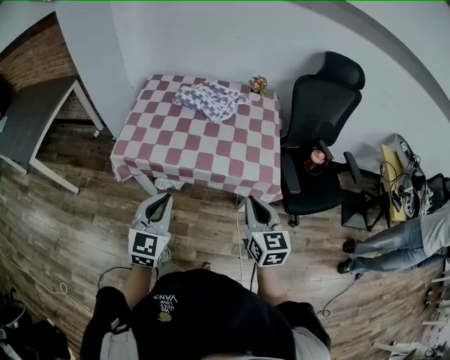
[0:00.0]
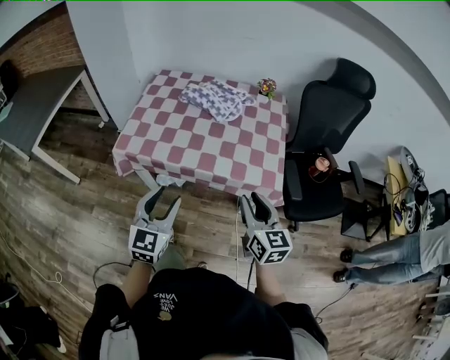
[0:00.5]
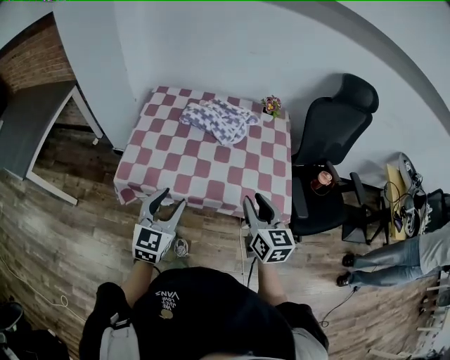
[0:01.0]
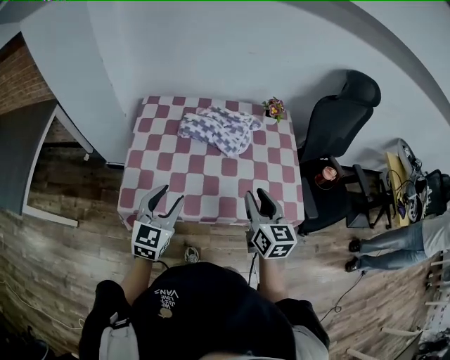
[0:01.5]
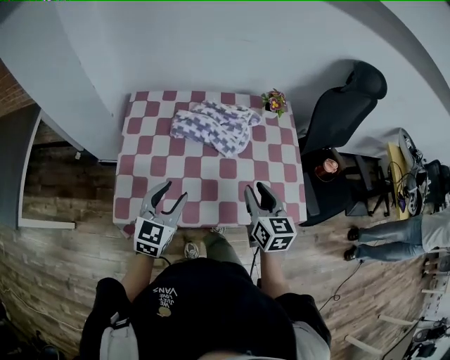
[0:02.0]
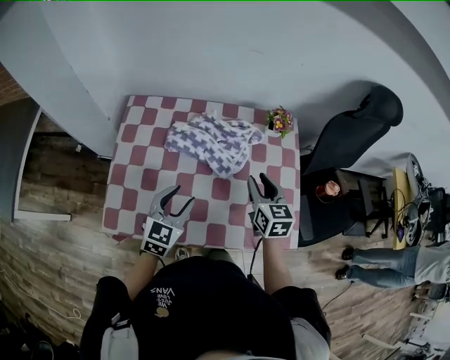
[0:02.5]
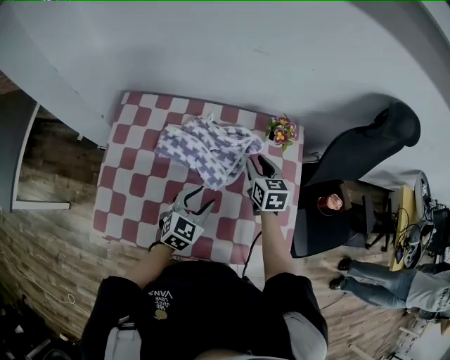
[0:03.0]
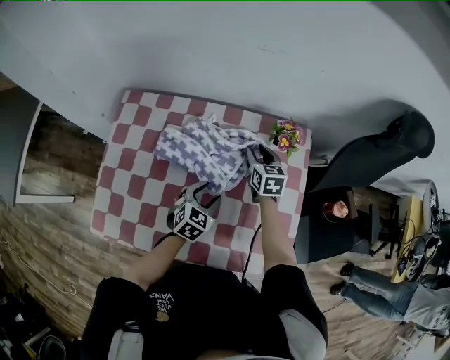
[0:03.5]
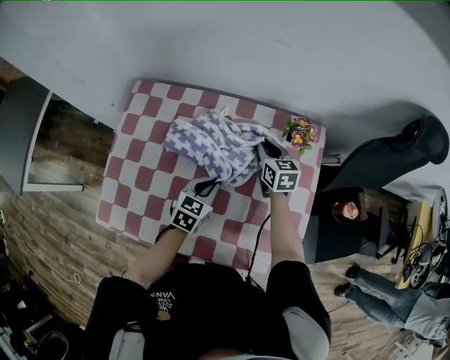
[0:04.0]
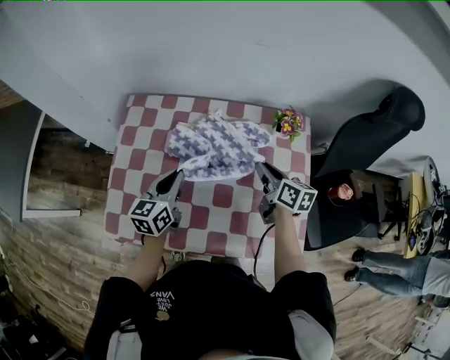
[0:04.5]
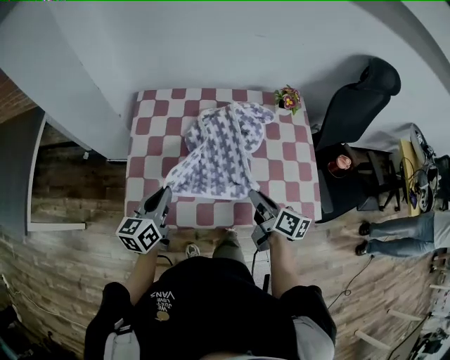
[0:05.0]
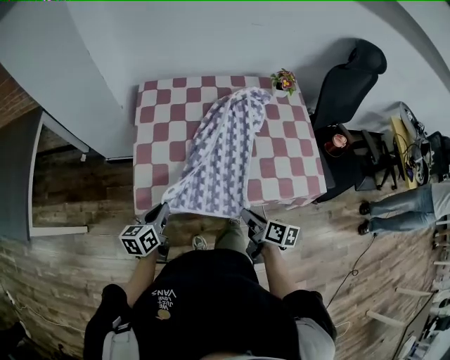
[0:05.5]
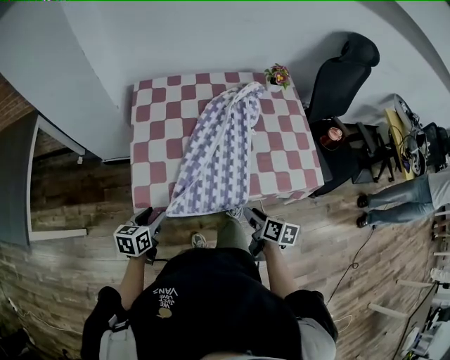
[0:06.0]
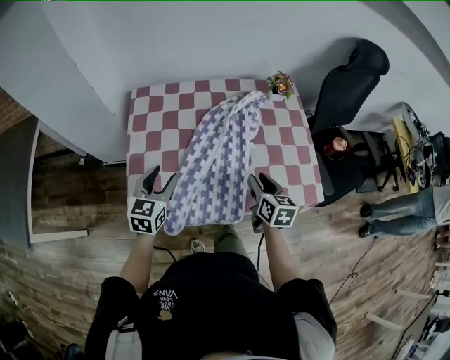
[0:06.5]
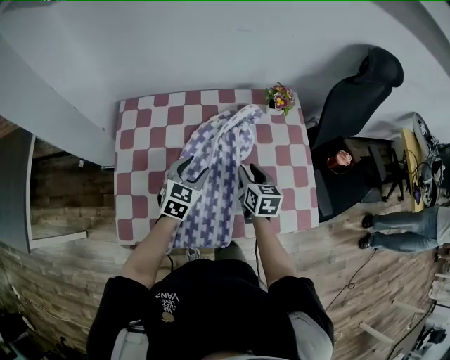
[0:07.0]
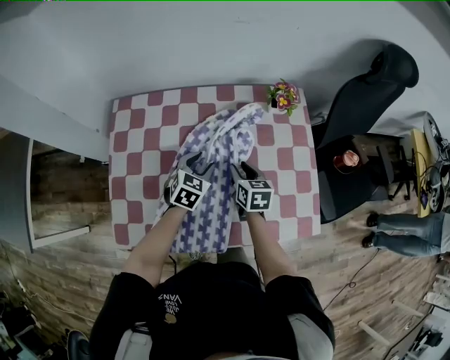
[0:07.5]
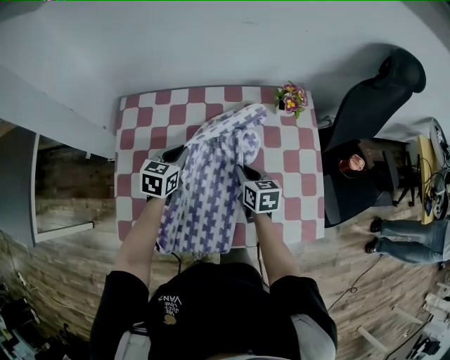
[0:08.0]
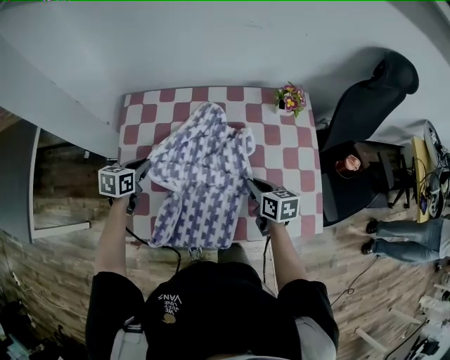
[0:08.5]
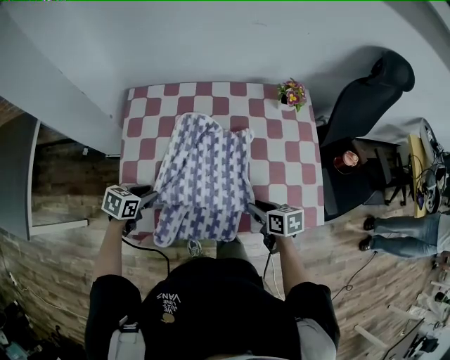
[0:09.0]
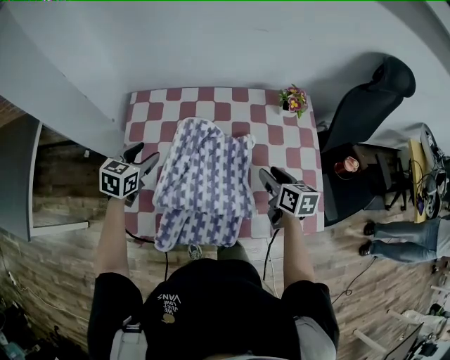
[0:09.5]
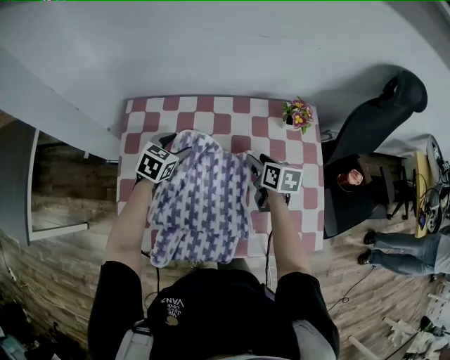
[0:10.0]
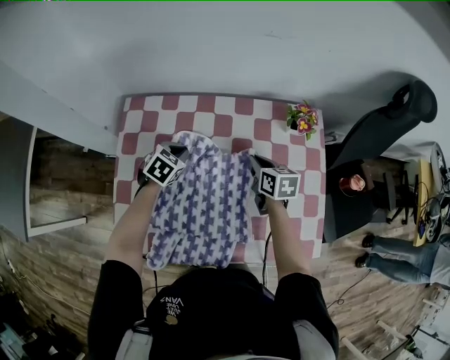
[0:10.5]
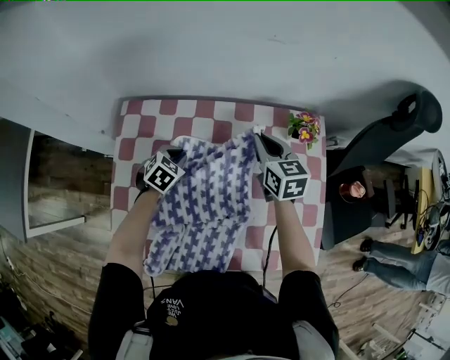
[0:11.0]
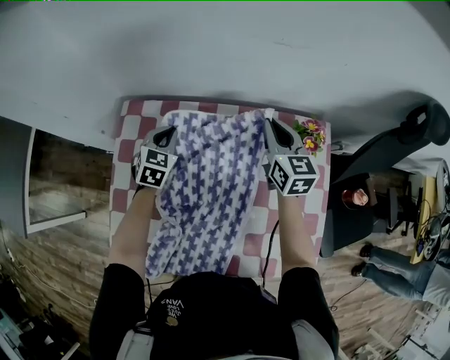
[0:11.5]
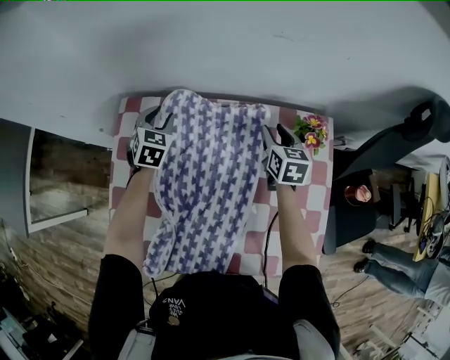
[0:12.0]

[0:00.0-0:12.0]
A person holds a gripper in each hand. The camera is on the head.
0:00.0 to 0:02.0: Both grippers travel together forward, about 30 cm. The right gripper opens. The left gripper opens.
0:02.0 to 0:04.0: The right gripper moves forward and downward, about 35 cm, and swivels some 20 degrees. Meanwhile the left gripper shifts roughly 30 cm forward, to the right and downward, turns by about 20 degrees, and closes its fingers.
0:04.0 to 0:06.0: The right gripper is displaced backward by some 50 cm, and rotates around the line of its fingers by roughly 40 degrees, clockwise from behind, while the left gripper moves to the left and backward, approximately 40 cm, and opens its fingers.
0:06.0 to 0:08.0: The right gripper goes about 30 cm forward, rotates some 30 degrees, and closes. Meanwhile the left gripper travels forward and to the right by some 40 cm, and closes up.
0:08.0 to 0:10.0: The right gripper moves about 15 cm backward and comes back, and opens its fingers. The left gripper moves some 20 cm backward and comes back, and opens up.
0:10.0 to 0:12.0: The right gripper shifts roughly 15 cm forward, changes its angle by roughly 20 degrees, and closes, then reopens; the left gripper shifts about 15 cm forward and to the left, turns by approximately 30 degrees, and closes its fingers.

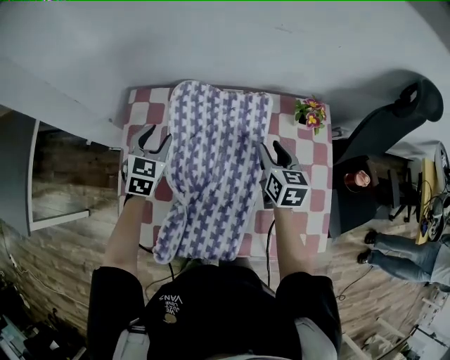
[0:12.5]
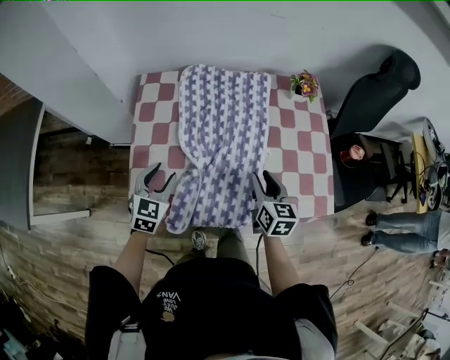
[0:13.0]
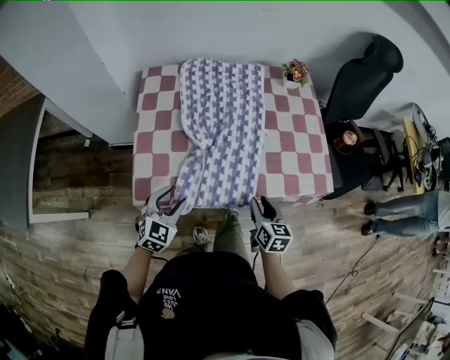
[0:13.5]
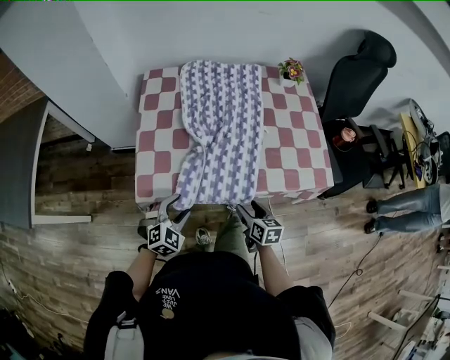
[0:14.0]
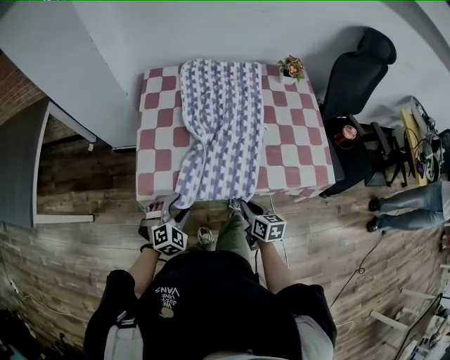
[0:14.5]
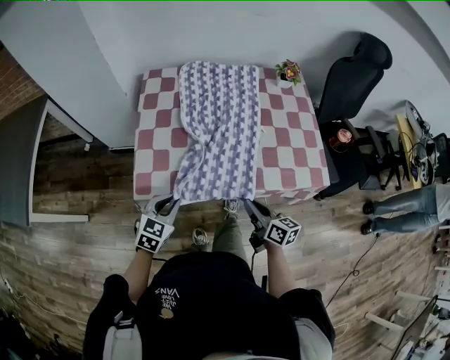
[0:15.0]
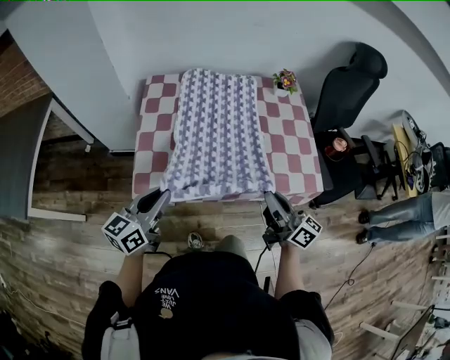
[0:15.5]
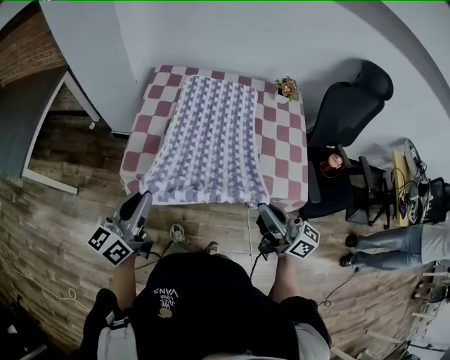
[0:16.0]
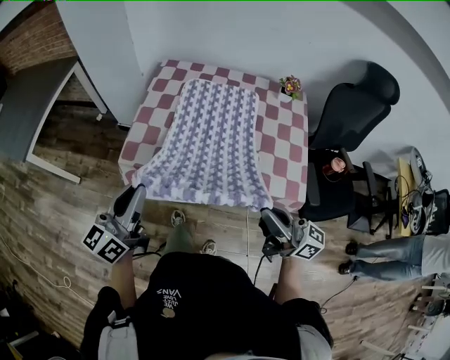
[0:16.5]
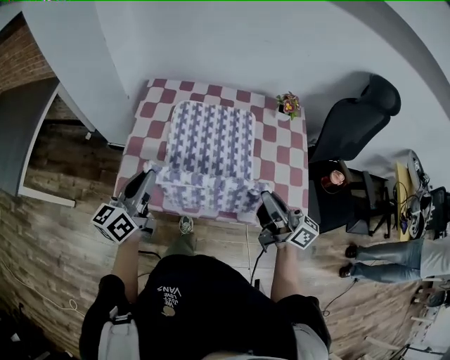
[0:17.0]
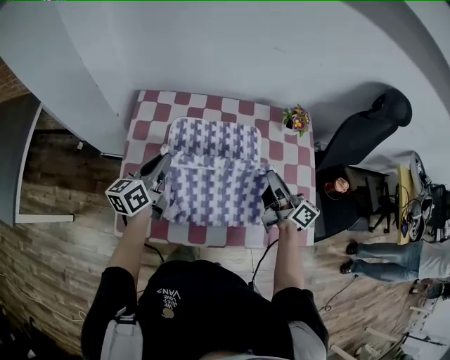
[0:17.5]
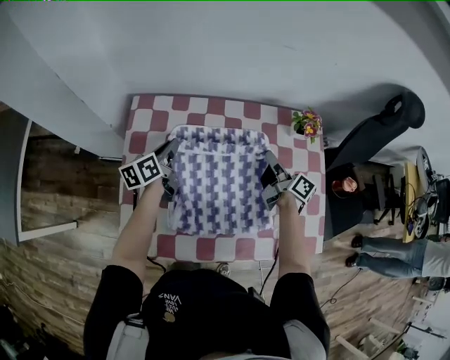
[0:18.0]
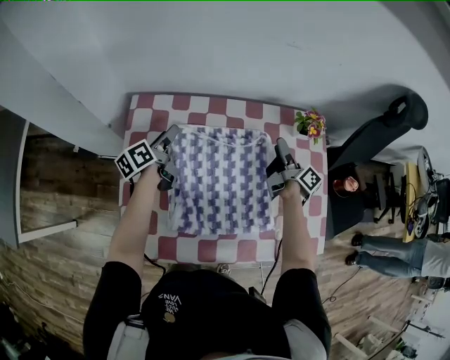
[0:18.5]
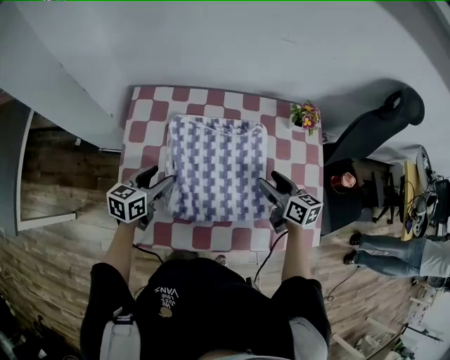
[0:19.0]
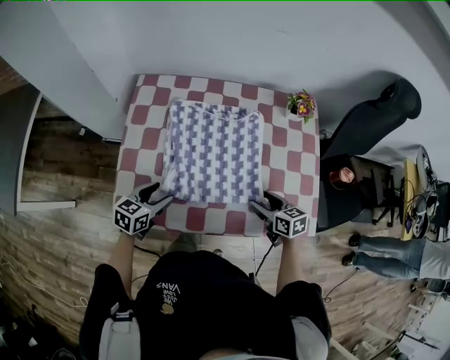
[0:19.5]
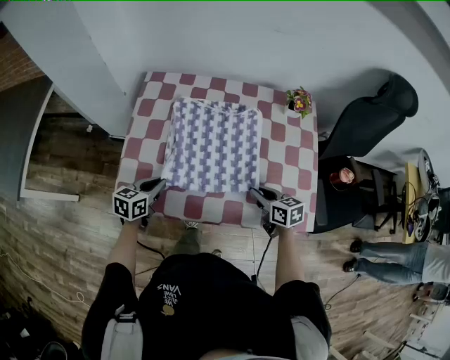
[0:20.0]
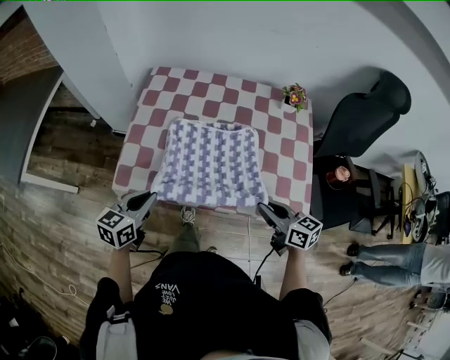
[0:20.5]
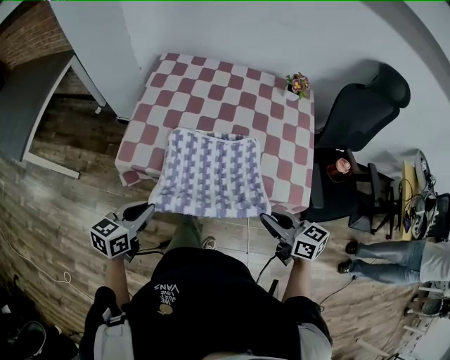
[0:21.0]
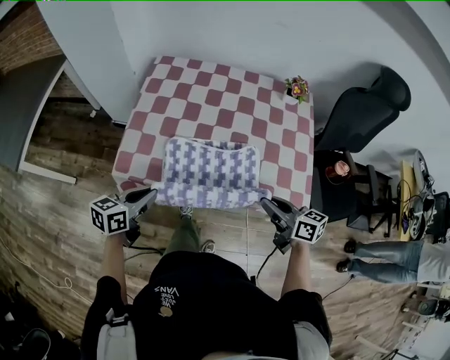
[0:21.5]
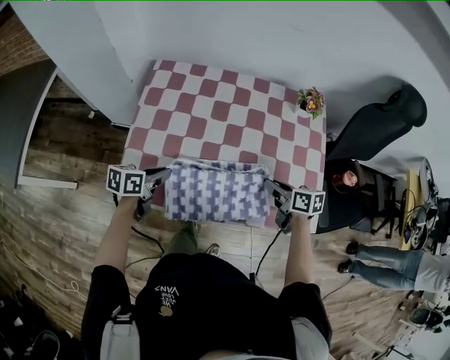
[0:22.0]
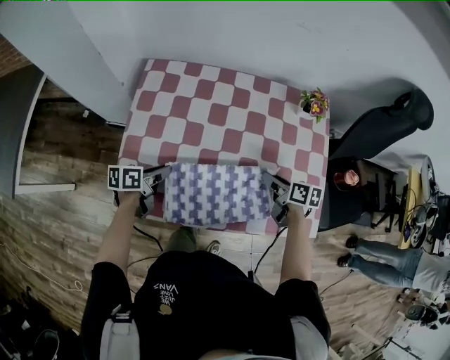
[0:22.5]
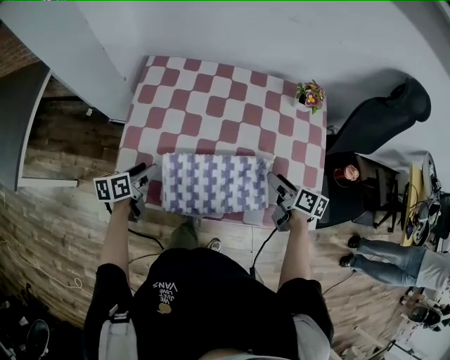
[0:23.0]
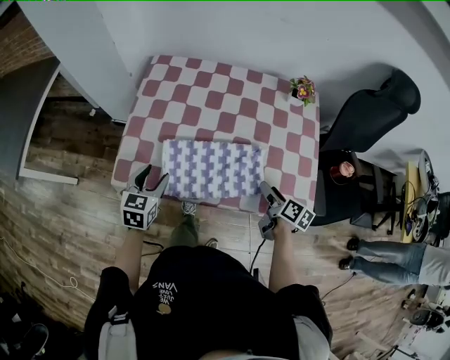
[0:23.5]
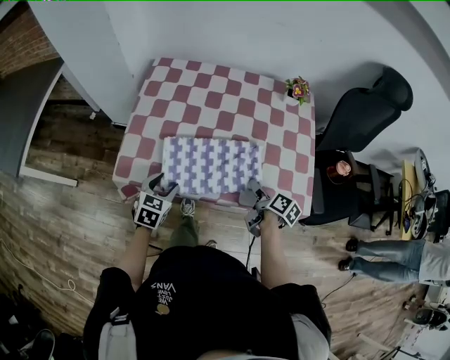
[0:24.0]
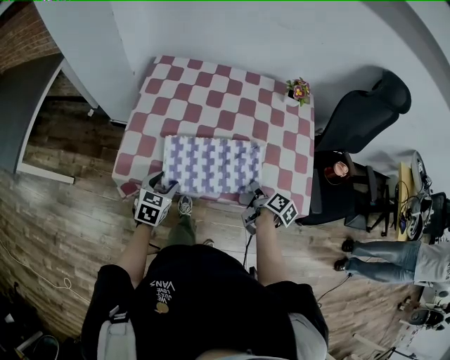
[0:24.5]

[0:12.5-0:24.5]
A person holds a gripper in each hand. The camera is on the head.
0:12.5 to 0:14.5: The pair of grippers is taken backward, about 40 cm. The left gripper turns by about 40 degrees, while the right gripper closes.
0:14.5 to 0:16.5: Both grippers move upward, roughly 30 cm. The left gripper angles its fingers upward, by approximately 50 degrees, and closes up; the right gripper angles its fingers upward, by roughly 50 degrees.
0:16.5 to 0:18.5: The two grippers travel together, approximately 50 cm. The left gripper swivels approximately 40 degrees, and opens. The right gripper changes its angle by about 60 degrees, and opens its fingers.
0:18.5 to 0:20.5: The two grippers go about 40 cm backward. The right gripper swivels about 60 degrees, and closes. The left gripper rolls clockwise, seen from behind, by approximately 40 degrees, and closes.
0:20.5 to 0:22.5: Both grippers move forward and downward, approximately 20 cm. The left gripper swivels roughly 40 degrees, while the right gripper turns by approximately 30 degrees.
0:22.5 to 0:24.5: The two grippers go about 15 cm backward. The right gripper turns by approximately 30 degrees, and opens and closes again. Meanwhile the left gripper rotates around the line of its fingers by approximately 40 degrees, clockwise from behind, and opens up.

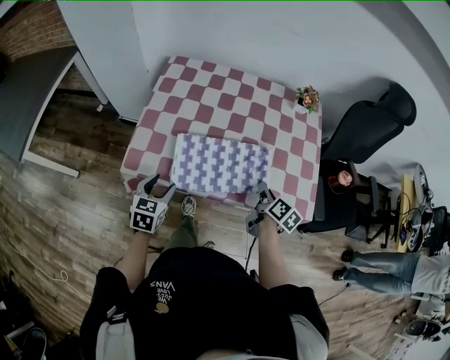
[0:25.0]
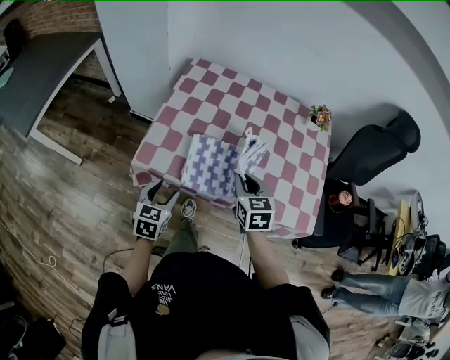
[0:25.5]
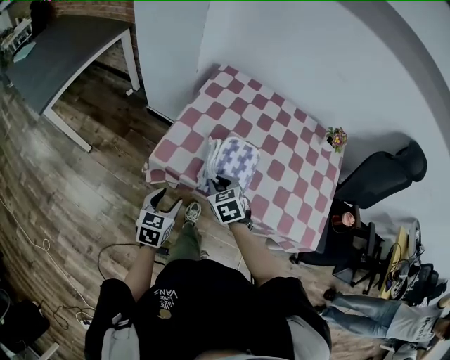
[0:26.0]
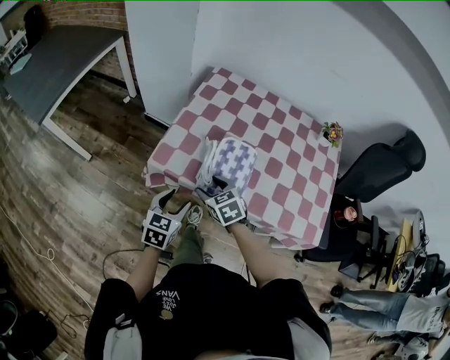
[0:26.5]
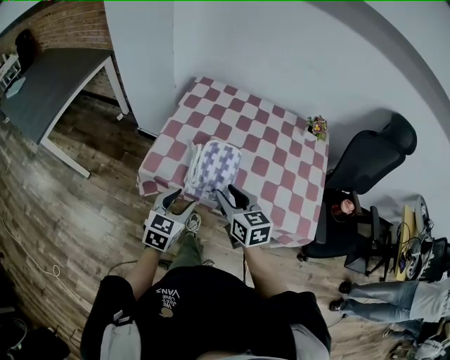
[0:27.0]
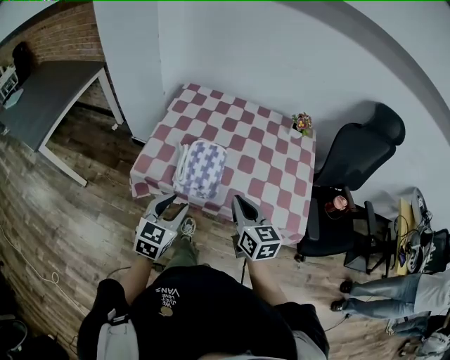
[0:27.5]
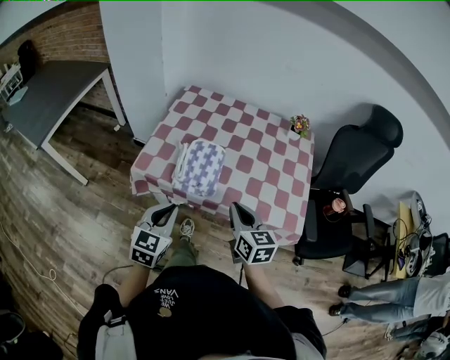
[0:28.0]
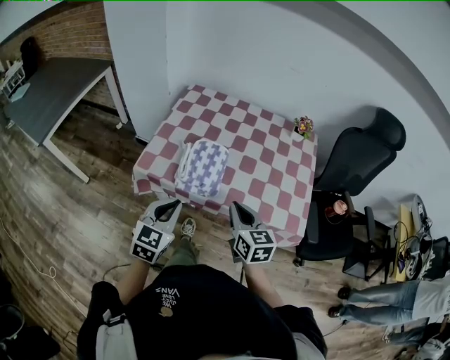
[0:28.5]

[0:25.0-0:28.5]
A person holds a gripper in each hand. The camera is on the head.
0:25.0 to 0:27.0: The right gripper moves to the left and upward, some 25 cm, twists roughly 50 degrees counterclockwise, seen from behind, and opens its fingers. The left gripper shifts about 10 cm upward and backward, and reaches approximately 5 cm to the left, then returns.
0:27.0 to 0:28.5: The left gripper travels upward and backward by approximately 10 cm, and closes its fingers; the right gripper moves to the right and backward, some 10 cm, and closes up.
